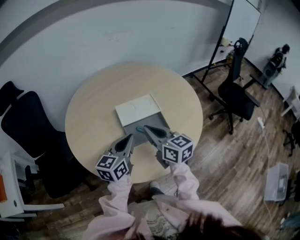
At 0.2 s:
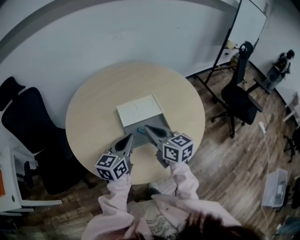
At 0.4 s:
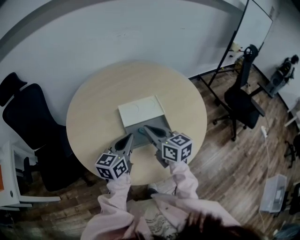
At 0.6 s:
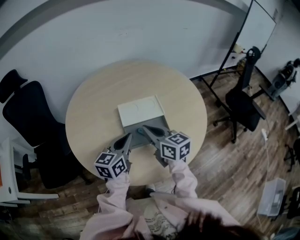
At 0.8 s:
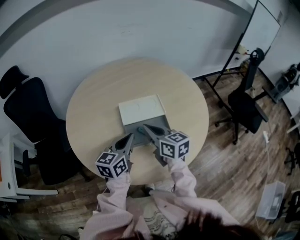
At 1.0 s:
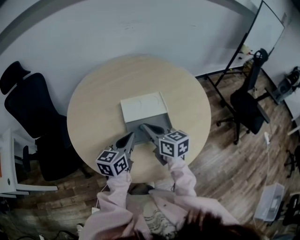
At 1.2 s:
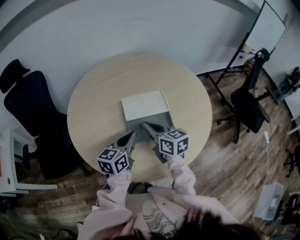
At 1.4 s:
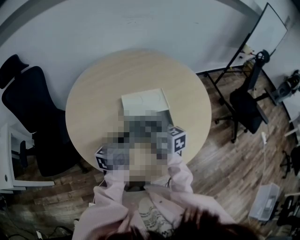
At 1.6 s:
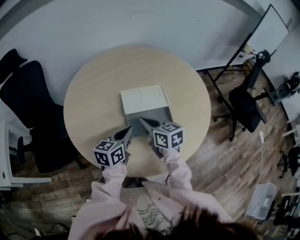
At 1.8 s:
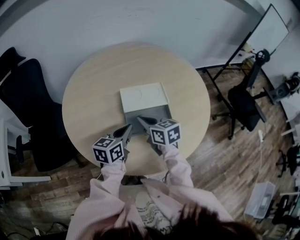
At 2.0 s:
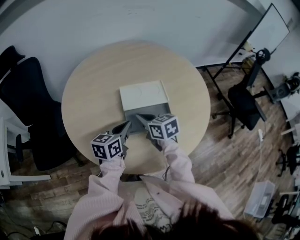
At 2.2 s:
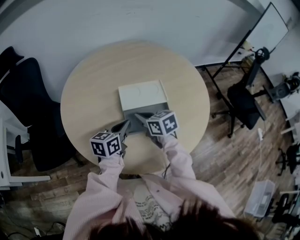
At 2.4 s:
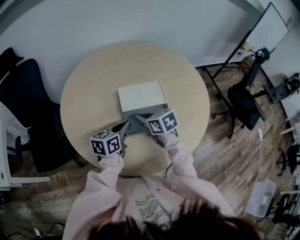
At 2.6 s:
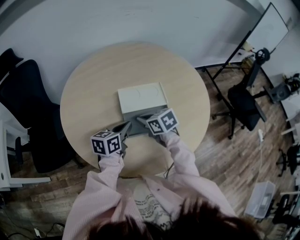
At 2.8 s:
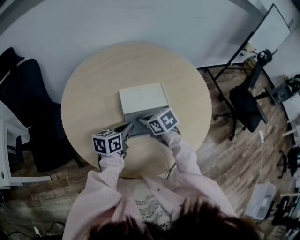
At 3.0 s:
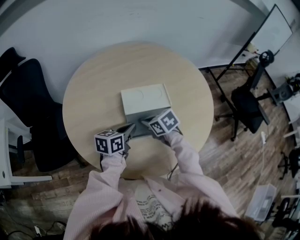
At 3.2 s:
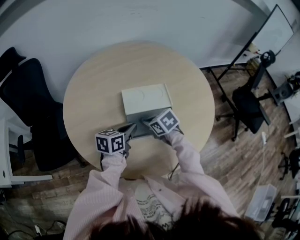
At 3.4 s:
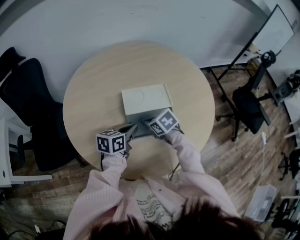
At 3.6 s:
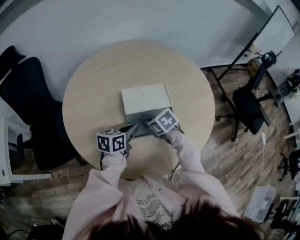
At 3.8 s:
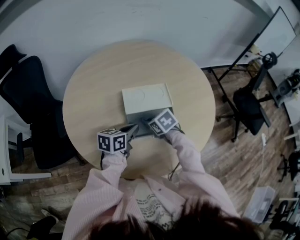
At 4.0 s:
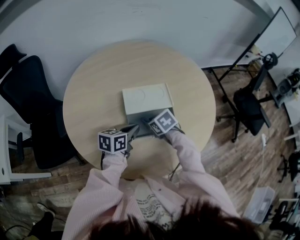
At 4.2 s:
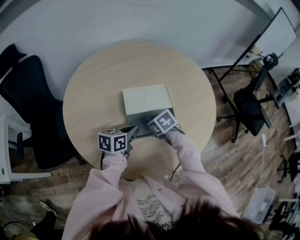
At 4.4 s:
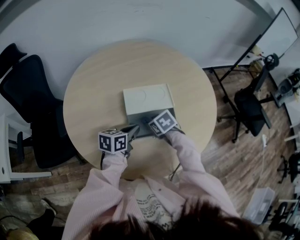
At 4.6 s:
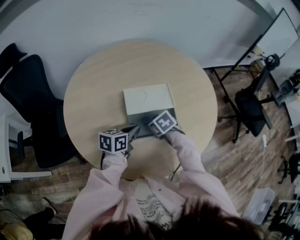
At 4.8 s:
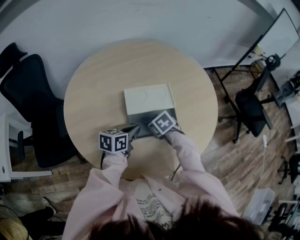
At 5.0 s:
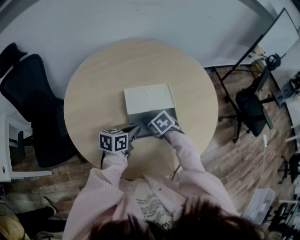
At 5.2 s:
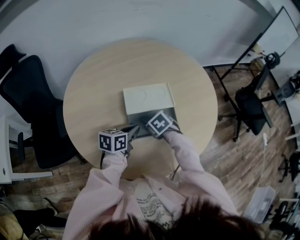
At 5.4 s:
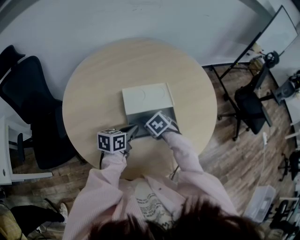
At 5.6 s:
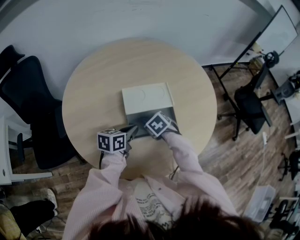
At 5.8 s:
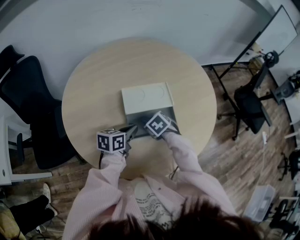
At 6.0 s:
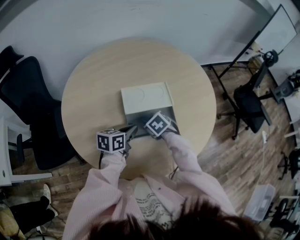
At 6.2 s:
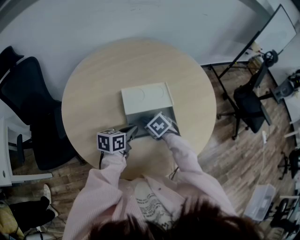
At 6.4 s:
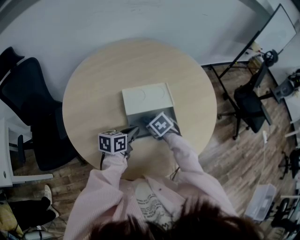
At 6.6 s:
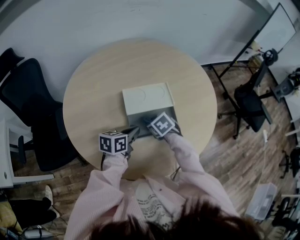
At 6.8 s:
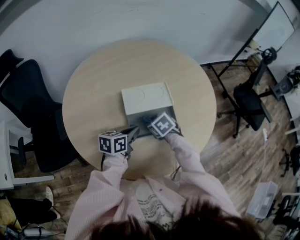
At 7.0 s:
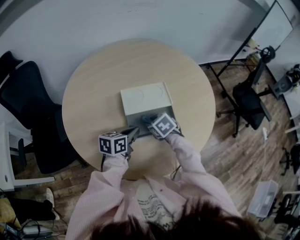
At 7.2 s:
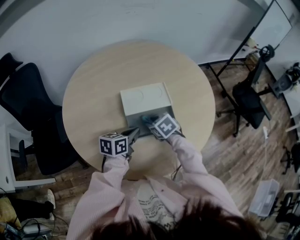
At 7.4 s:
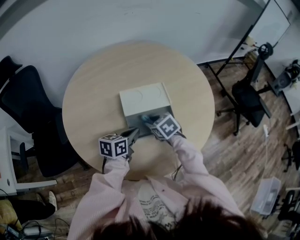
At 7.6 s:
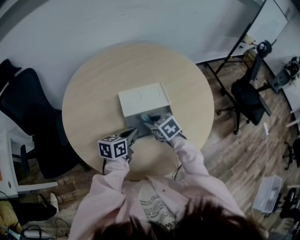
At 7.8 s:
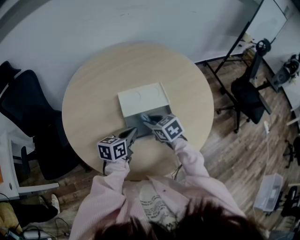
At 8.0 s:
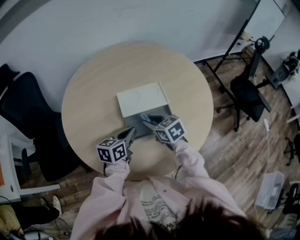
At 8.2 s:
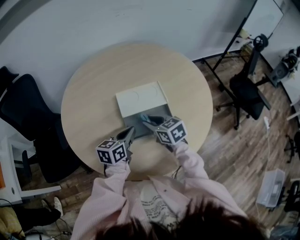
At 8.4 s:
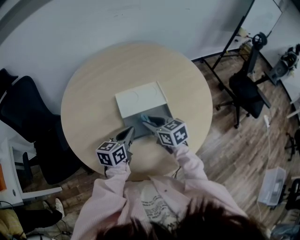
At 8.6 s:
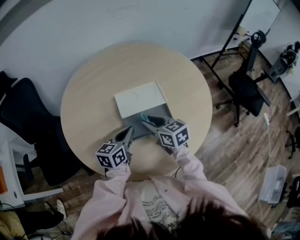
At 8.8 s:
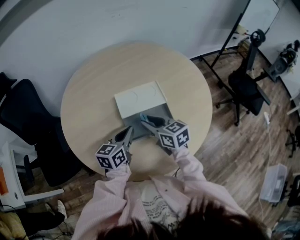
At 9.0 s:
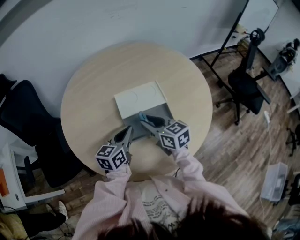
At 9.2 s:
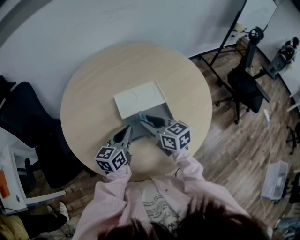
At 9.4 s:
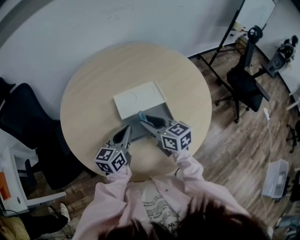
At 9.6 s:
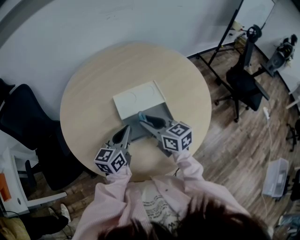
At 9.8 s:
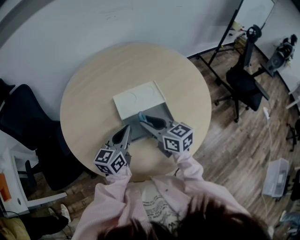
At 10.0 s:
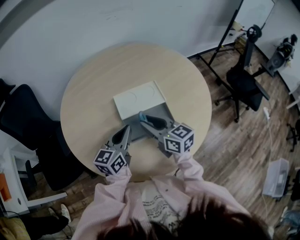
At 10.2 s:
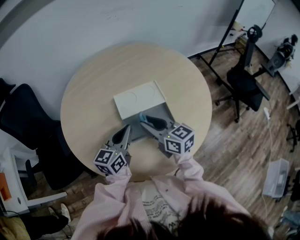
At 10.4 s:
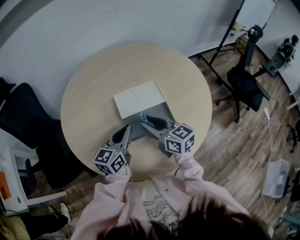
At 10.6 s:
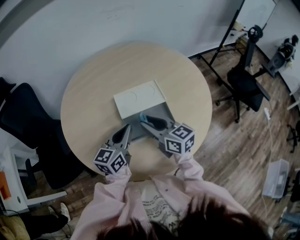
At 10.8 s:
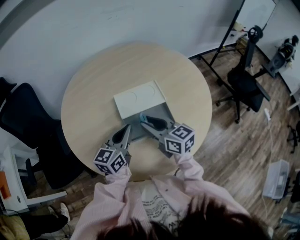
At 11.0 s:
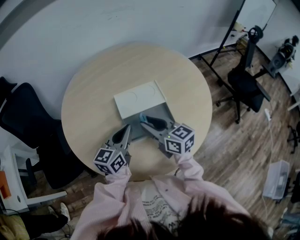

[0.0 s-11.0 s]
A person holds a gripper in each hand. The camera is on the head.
0.0 to 1.6 s: The right gripper goes roughly 10 cm downward and forward. The left gripper goes approximately 5 cm downward.
1.6 to 3.2 s: The left gripper changes place by approximately 5 cm; the right gripper heads downward, covering roughly 10 cm, and swivels about 40 degrees.
3.2 to 4.8 s: The right gripper changes place by about 5 cm, and opens its fingers.
4.8 to 6.2 s: The grippers move only a little.
6.2 to 7.8 s: The right gripper travels upward by roughly 5 cm, and rotates some 30 degrees.
7.8 to 9.4 s: The grippers both shift upward by about 5 cm. The right gripper changes its angle by about 30 degrees.
9.4 to 11.0 s: The grippers stay close to where they were, moving slightly.

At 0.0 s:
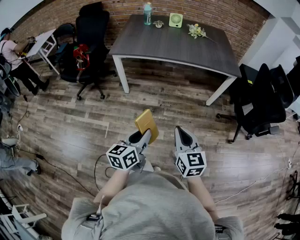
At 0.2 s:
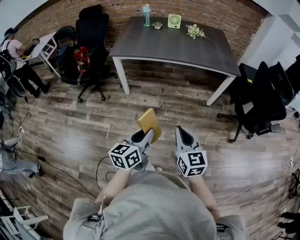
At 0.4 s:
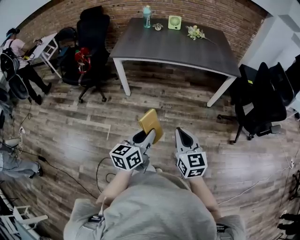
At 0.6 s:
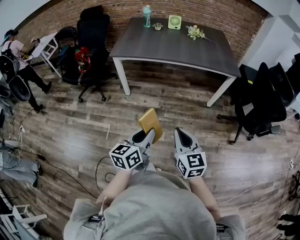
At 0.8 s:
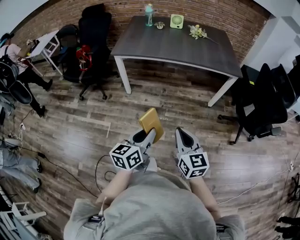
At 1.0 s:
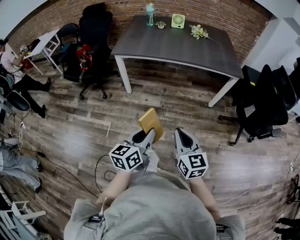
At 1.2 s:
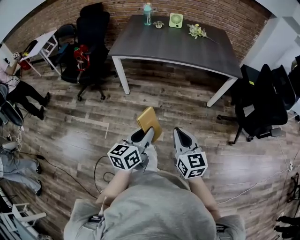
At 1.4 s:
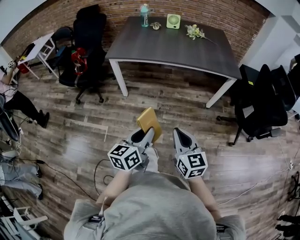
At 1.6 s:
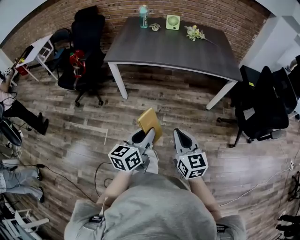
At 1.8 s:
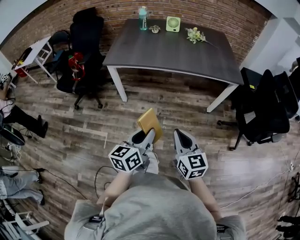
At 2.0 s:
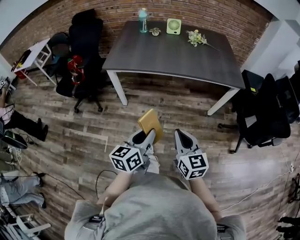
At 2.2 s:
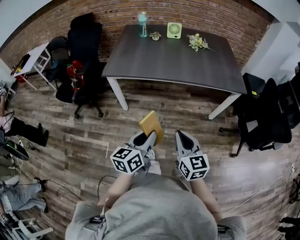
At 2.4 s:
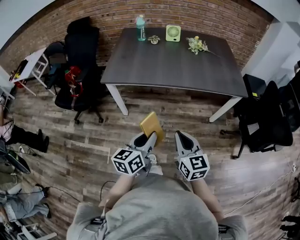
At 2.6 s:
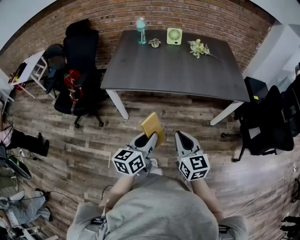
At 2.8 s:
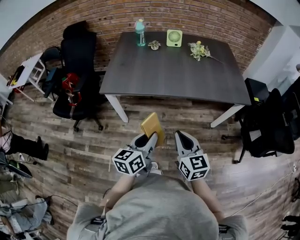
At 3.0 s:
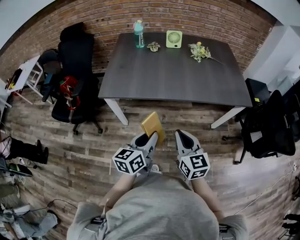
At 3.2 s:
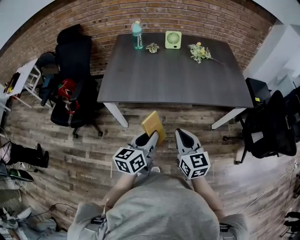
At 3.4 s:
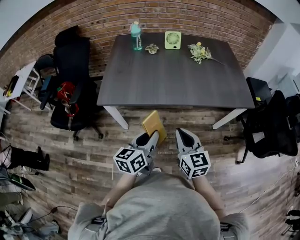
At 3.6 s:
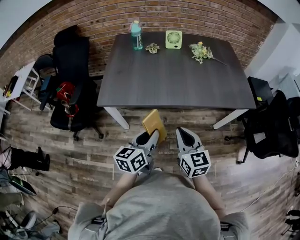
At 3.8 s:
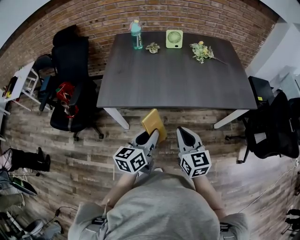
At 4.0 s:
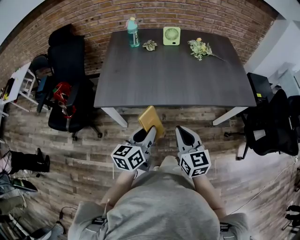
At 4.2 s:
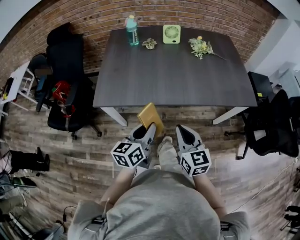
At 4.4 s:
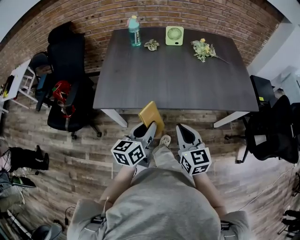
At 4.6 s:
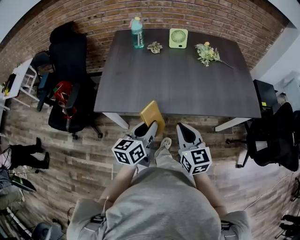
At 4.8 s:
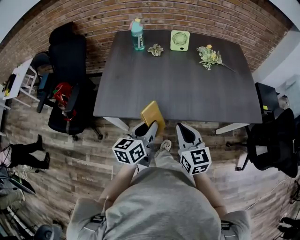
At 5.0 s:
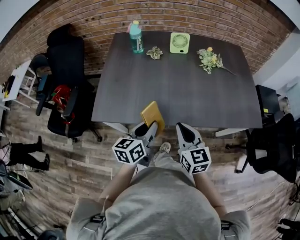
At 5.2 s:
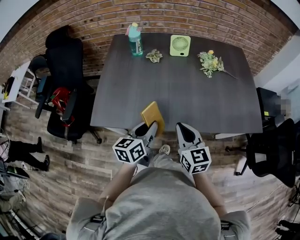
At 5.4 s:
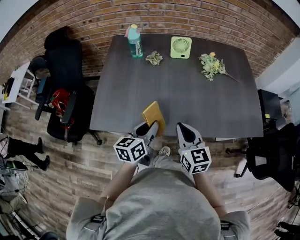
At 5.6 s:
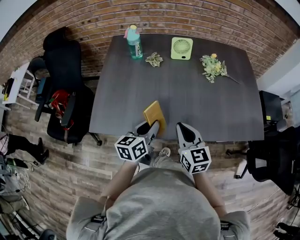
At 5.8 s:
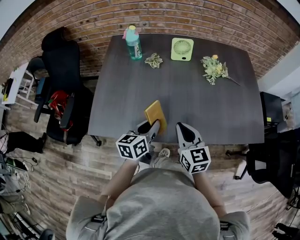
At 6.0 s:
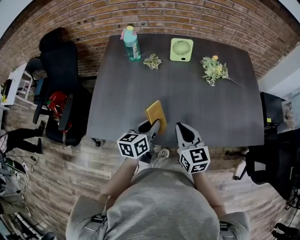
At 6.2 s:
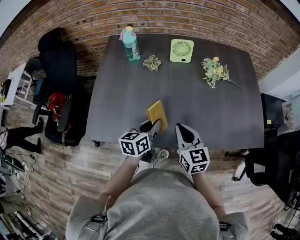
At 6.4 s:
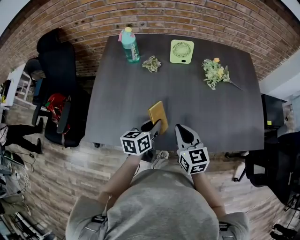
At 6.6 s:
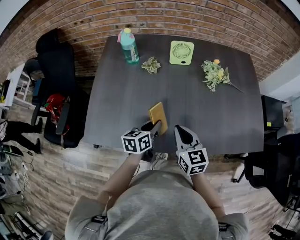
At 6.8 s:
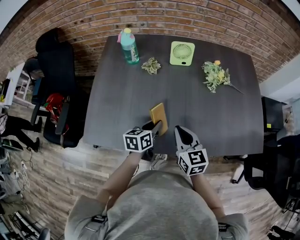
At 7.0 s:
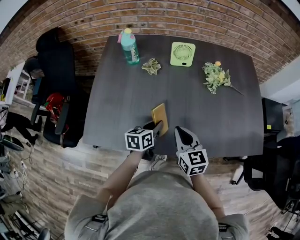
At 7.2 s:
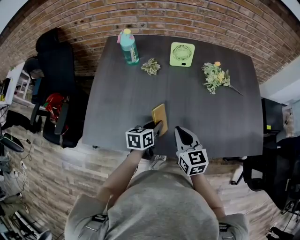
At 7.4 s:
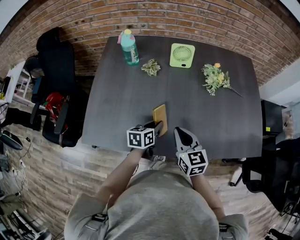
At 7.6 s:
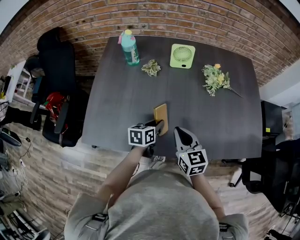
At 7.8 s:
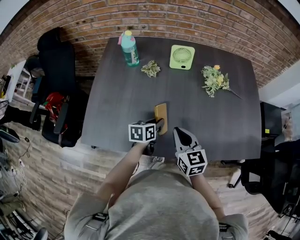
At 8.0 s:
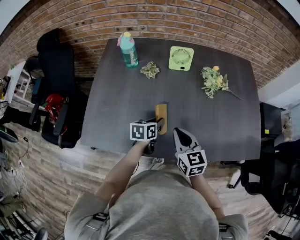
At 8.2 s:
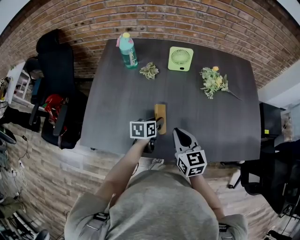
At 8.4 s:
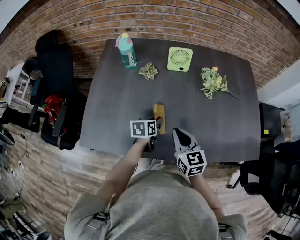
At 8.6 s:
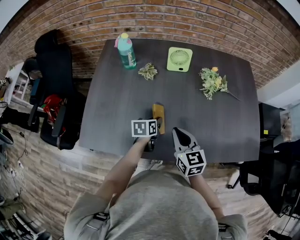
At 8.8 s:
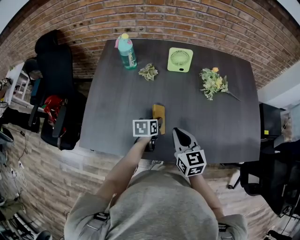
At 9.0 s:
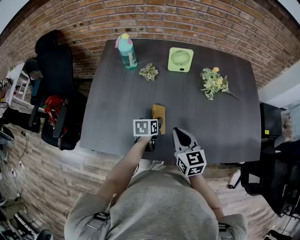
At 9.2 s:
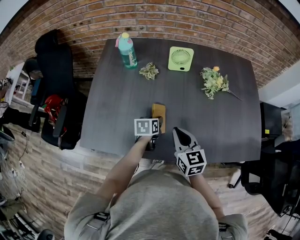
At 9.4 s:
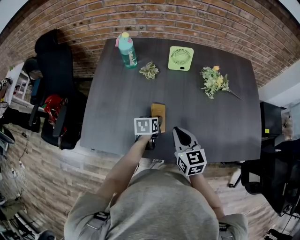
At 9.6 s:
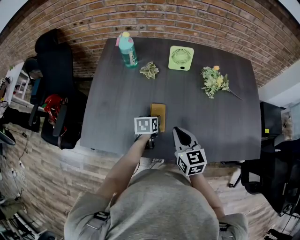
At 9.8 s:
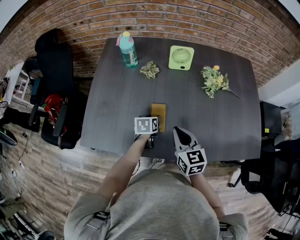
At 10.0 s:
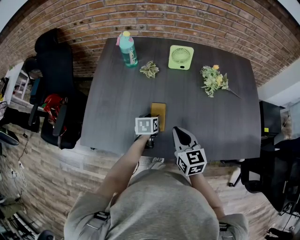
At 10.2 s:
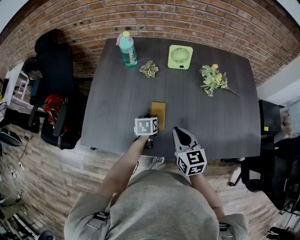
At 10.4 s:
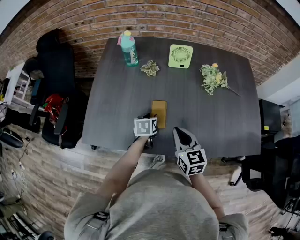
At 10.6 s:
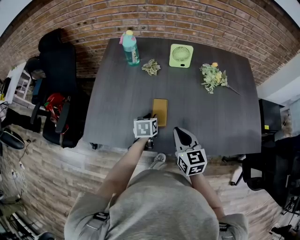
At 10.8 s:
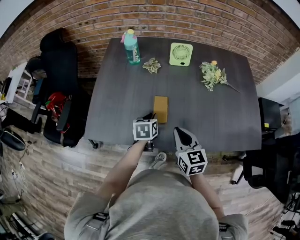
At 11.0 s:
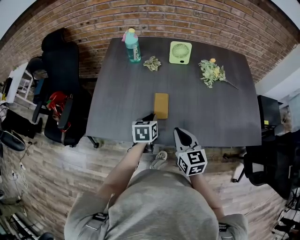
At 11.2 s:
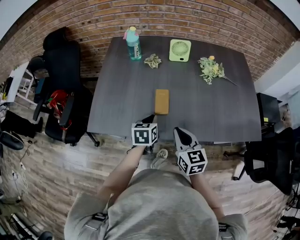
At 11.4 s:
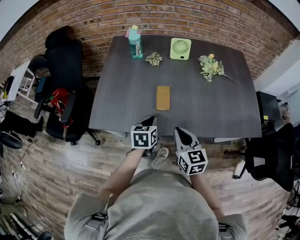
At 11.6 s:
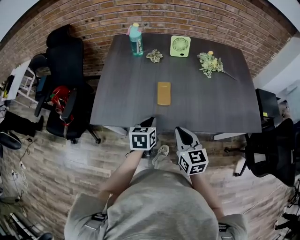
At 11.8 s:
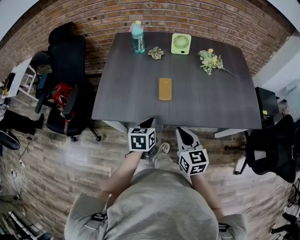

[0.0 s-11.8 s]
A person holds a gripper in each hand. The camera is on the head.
0.0 to 1.4 s: The left gripper ends up some 5 cm from where it was.
1.4 to 3.0 s: The grippers both shift forward by about 30 cm.
3.0 to 4.4 s: Both grippers travel together forward, some 15 cm.
4.4 to 6.0 s: The grippers both shift forward by approximately 25 cm.
6.0 to 7.4 s: The left gripper travels downward and forward by roughly 10 cm; the right gripper changes place by about 5 cm.
7.4 to 8.8 s: The left gripper heads forward, covering approximately 5 cm.
8.8 to 10.4 s: The grippers stay close to where they were, moving slightly.
10.4 to 11.8 s: The right gripper travels backward by some 20 cm, while the left gripper heads backward and upward, covering some 25 cm, and closes its fingers.

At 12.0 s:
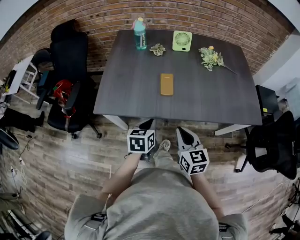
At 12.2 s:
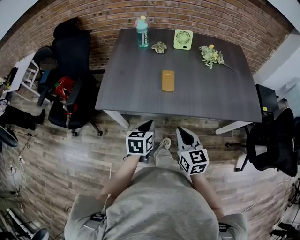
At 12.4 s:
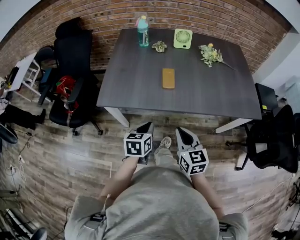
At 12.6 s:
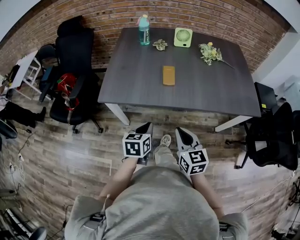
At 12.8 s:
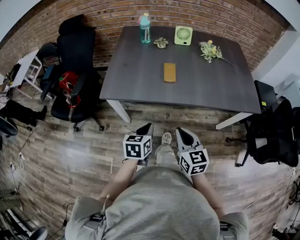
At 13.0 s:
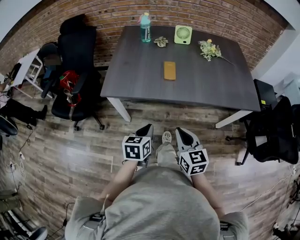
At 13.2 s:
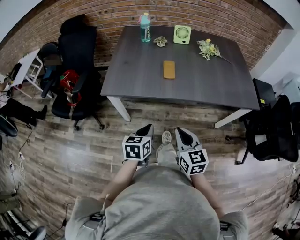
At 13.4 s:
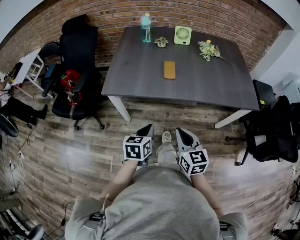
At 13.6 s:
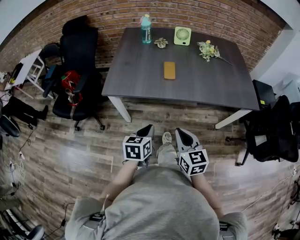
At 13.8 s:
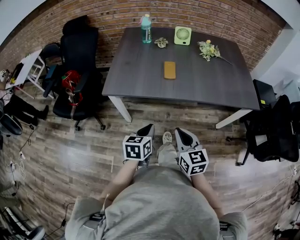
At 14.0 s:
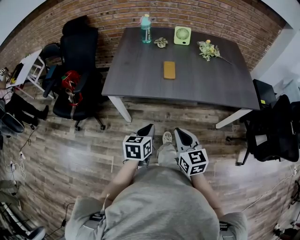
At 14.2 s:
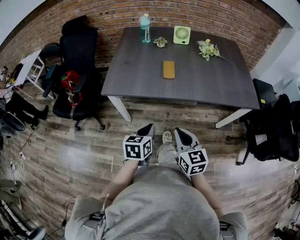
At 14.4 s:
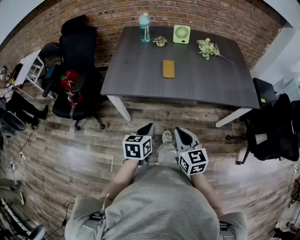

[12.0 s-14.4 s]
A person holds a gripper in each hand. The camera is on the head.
12.0 to 13.2 s: Both grippers travel together backward, about 15 cm.
13.2 to 14.4 s: Both grippers stay put.
